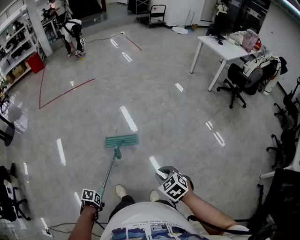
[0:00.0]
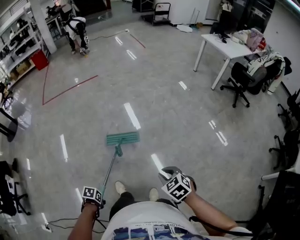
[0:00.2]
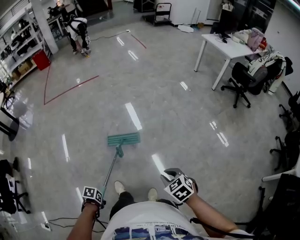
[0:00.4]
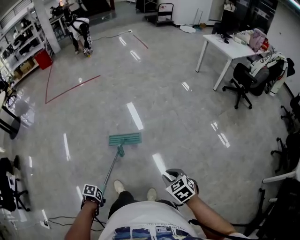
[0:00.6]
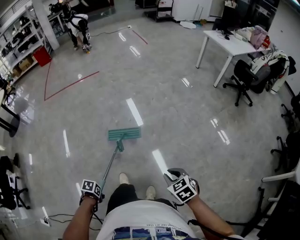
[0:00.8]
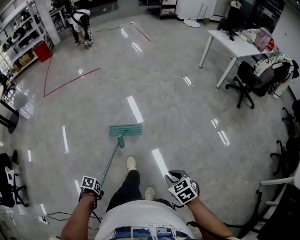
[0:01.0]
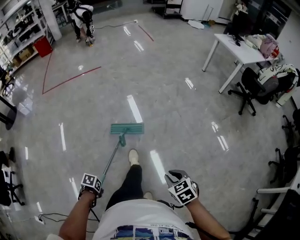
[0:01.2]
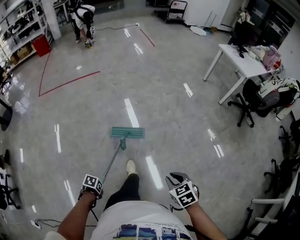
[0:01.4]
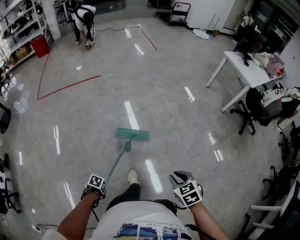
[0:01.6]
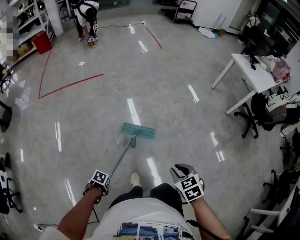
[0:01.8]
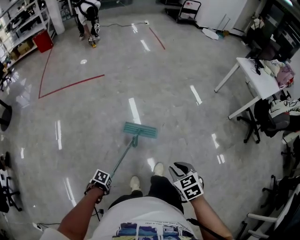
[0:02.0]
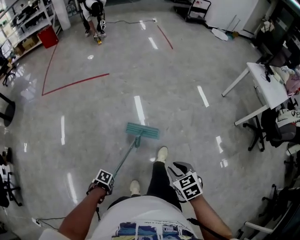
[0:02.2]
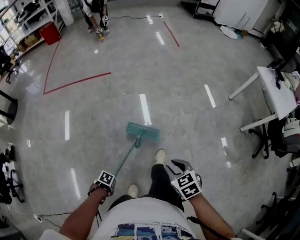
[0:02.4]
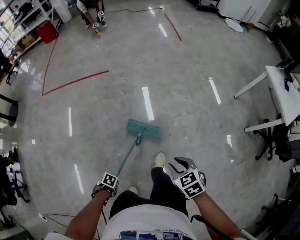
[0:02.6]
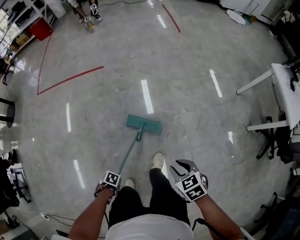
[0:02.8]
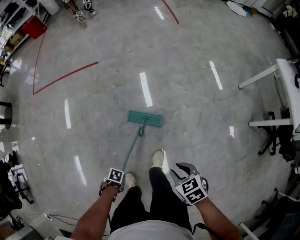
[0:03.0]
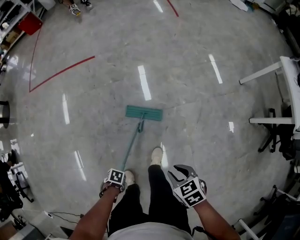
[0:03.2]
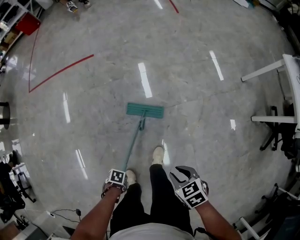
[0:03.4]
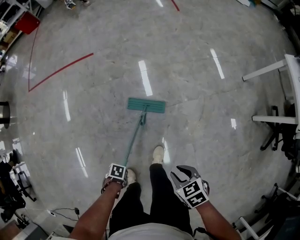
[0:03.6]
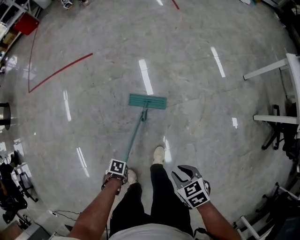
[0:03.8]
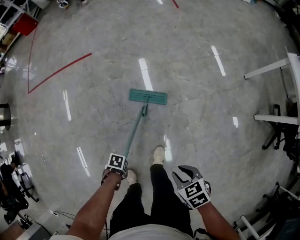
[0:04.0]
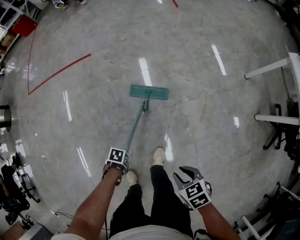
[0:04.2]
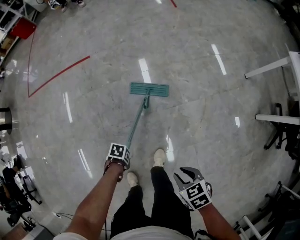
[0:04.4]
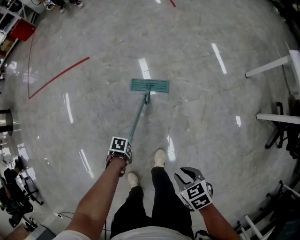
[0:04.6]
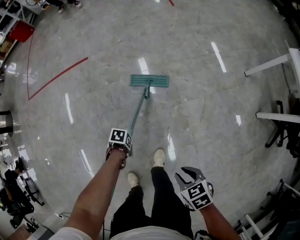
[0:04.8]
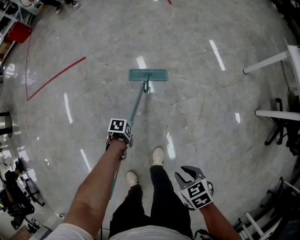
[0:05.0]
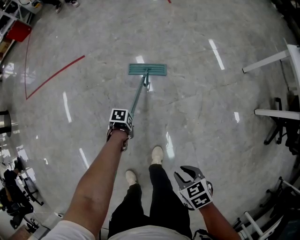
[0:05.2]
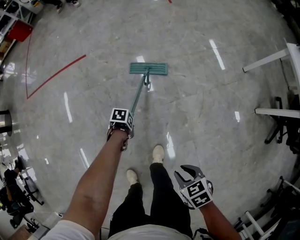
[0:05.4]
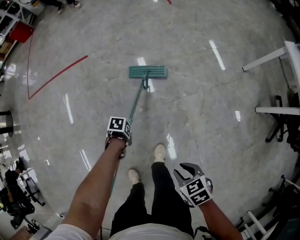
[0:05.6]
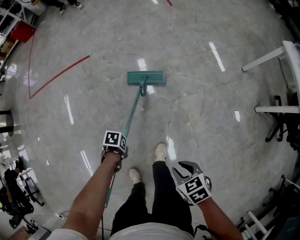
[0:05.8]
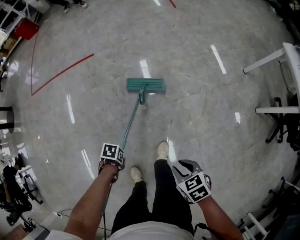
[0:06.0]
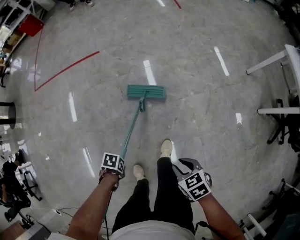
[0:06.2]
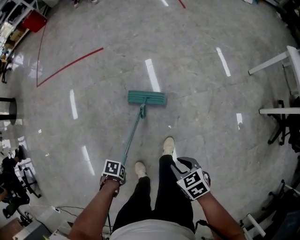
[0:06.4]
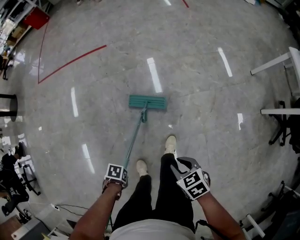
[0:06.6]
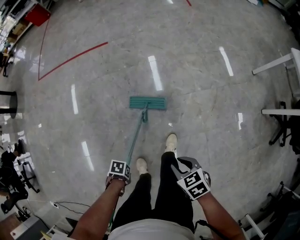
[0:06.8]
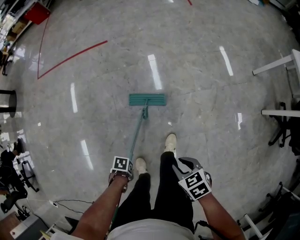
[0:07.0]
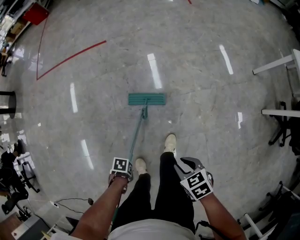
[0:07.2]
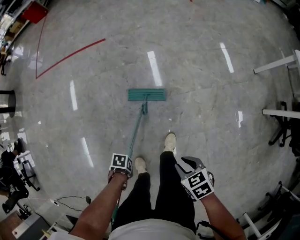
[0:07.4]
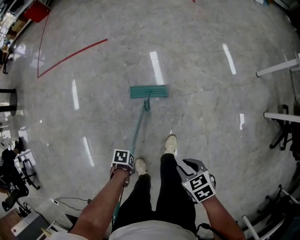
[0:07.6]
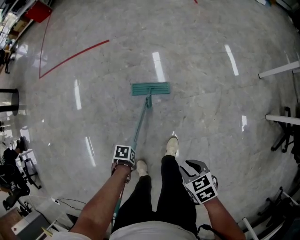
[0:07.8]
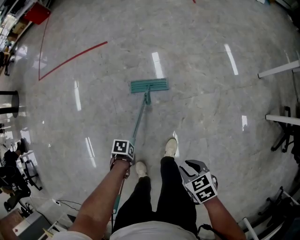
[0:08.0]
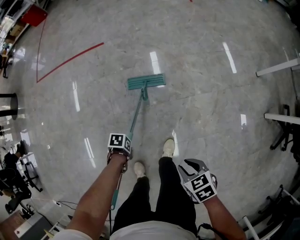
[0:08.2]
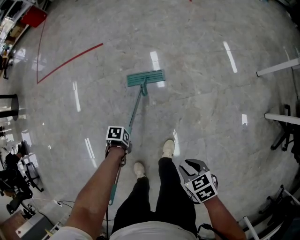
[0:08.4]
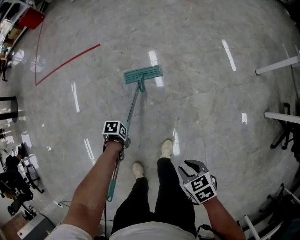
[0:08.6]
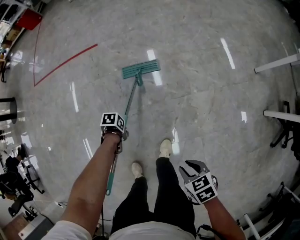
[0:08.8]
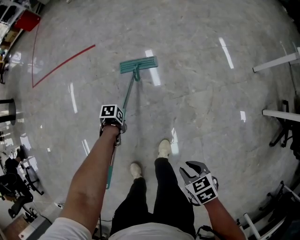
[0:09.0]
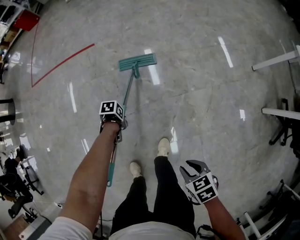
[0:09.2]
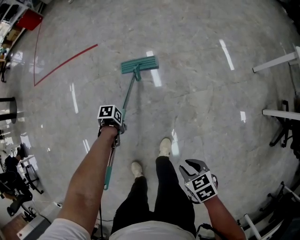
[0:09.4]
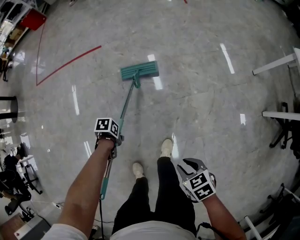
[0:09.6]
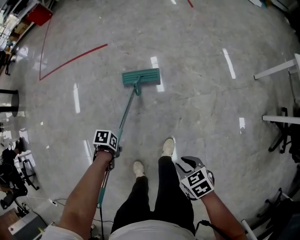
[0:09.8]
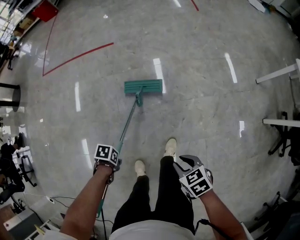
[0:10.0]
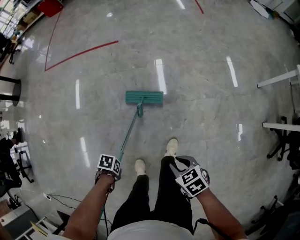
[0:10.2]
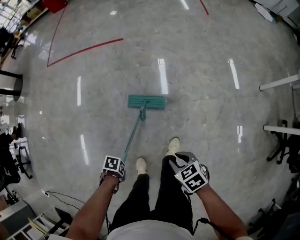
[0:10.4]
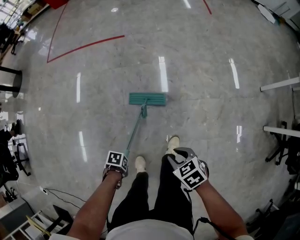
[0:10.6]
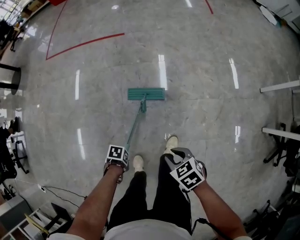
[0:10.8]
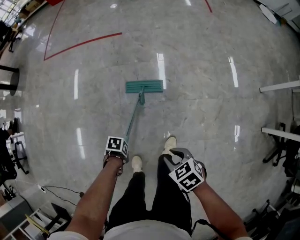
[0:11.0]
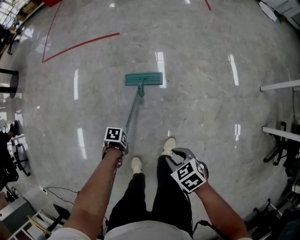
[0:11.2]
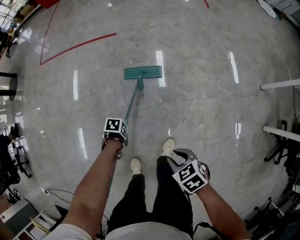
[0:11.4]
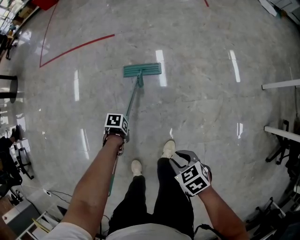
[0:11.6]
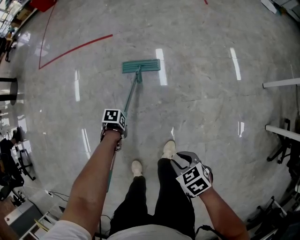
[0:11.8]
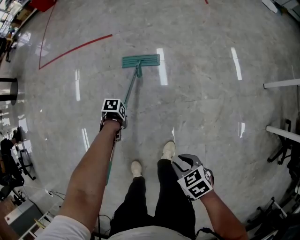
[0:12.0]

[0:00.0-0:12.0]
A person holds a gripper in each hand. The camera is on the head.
0.0 to 1.6 s: The right gripper moves some 25 cm.
1.6 to 3.0 s: The right gripper changes place by some 40 cm.
7.6 to 9.0 s: The right gripper moves approximately 5 cm.
9.0 to 10.4 s: The right gripper moves about 15 cm.
10.4 to 12.0 s: The right gripper moves some 10 cm.

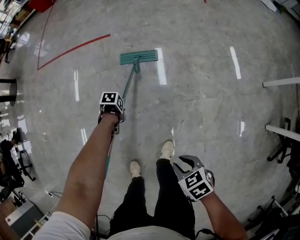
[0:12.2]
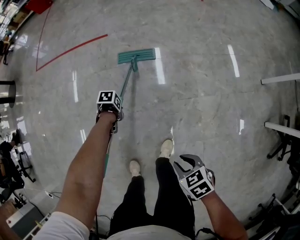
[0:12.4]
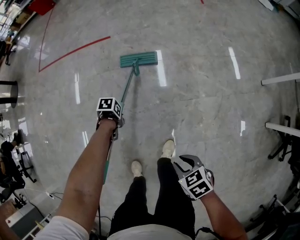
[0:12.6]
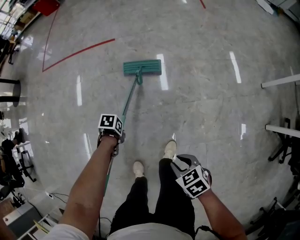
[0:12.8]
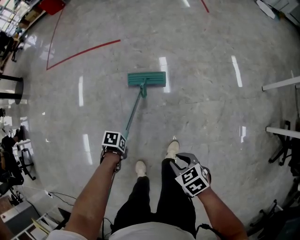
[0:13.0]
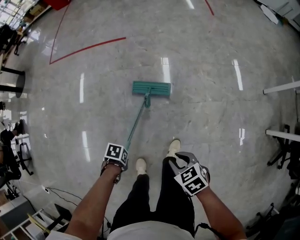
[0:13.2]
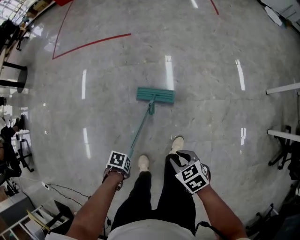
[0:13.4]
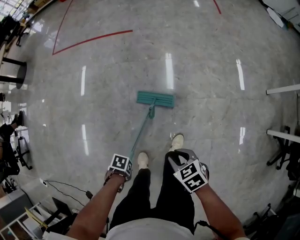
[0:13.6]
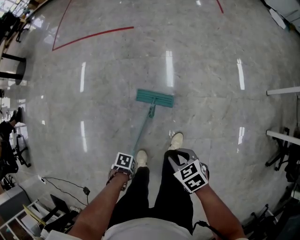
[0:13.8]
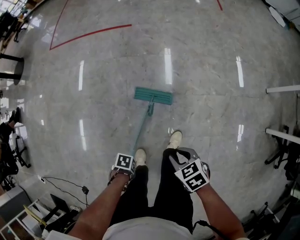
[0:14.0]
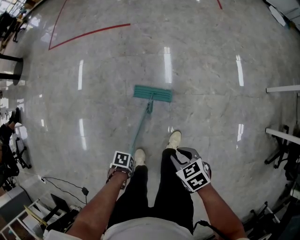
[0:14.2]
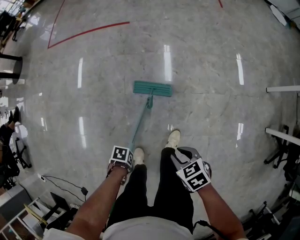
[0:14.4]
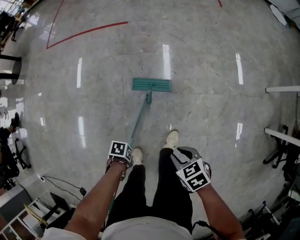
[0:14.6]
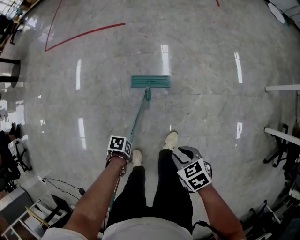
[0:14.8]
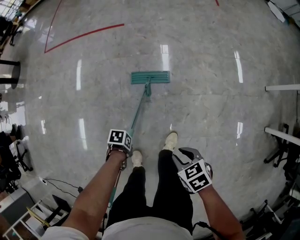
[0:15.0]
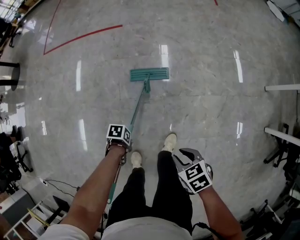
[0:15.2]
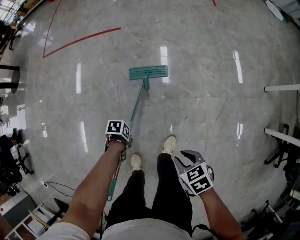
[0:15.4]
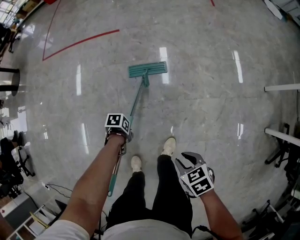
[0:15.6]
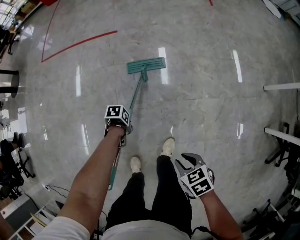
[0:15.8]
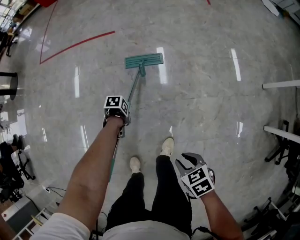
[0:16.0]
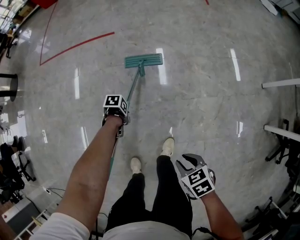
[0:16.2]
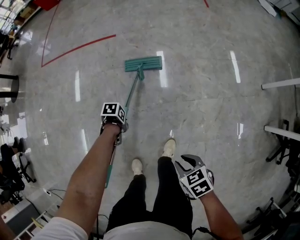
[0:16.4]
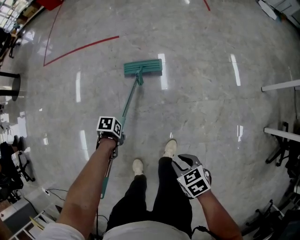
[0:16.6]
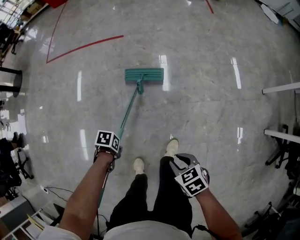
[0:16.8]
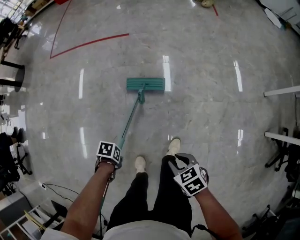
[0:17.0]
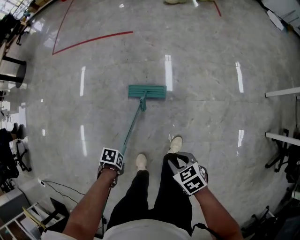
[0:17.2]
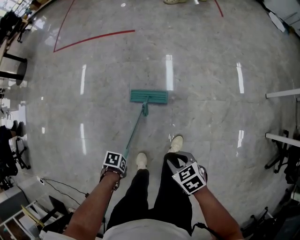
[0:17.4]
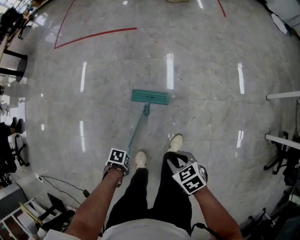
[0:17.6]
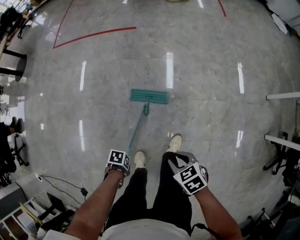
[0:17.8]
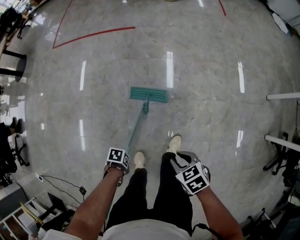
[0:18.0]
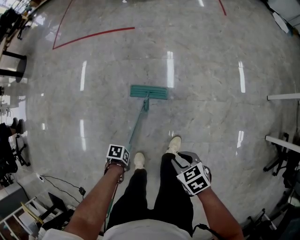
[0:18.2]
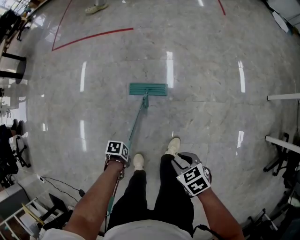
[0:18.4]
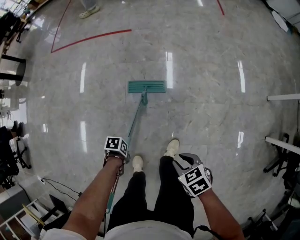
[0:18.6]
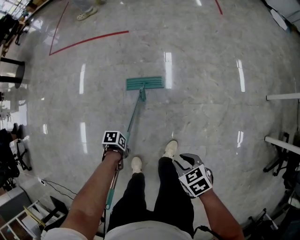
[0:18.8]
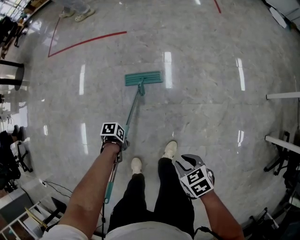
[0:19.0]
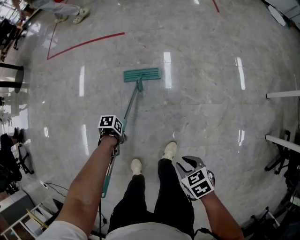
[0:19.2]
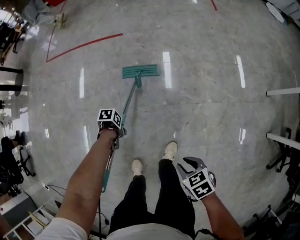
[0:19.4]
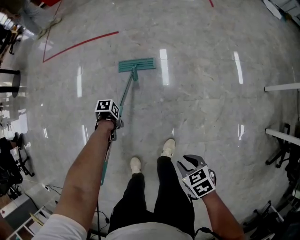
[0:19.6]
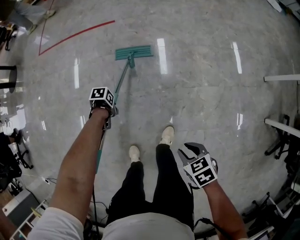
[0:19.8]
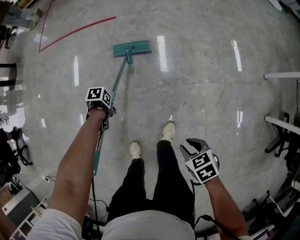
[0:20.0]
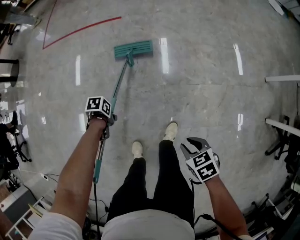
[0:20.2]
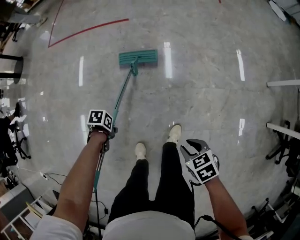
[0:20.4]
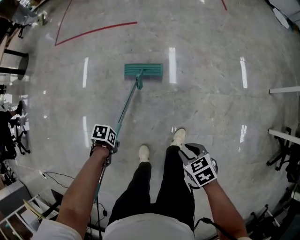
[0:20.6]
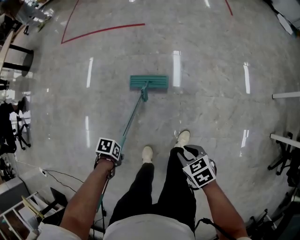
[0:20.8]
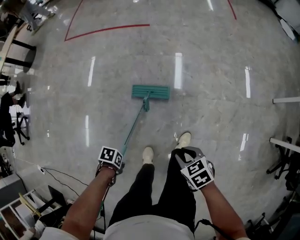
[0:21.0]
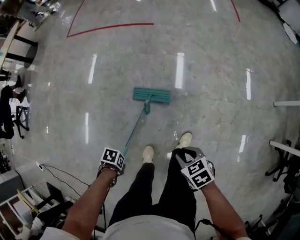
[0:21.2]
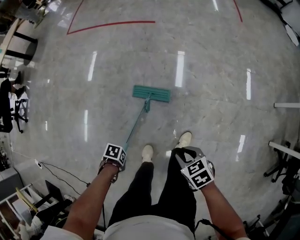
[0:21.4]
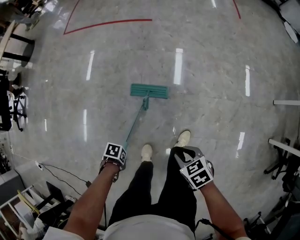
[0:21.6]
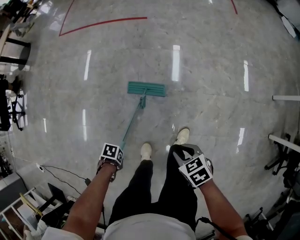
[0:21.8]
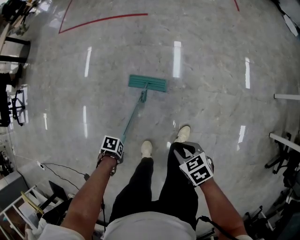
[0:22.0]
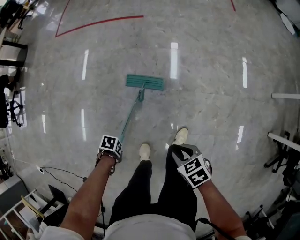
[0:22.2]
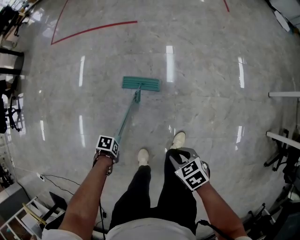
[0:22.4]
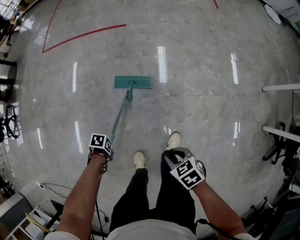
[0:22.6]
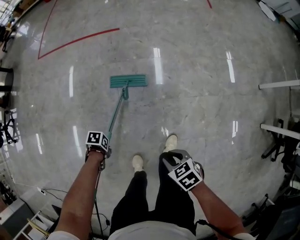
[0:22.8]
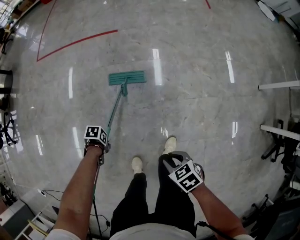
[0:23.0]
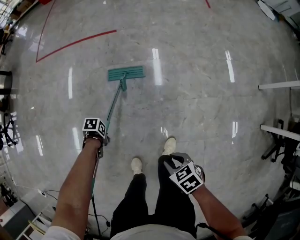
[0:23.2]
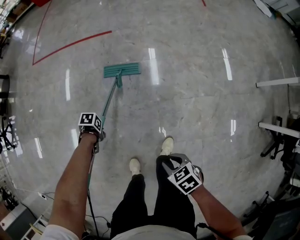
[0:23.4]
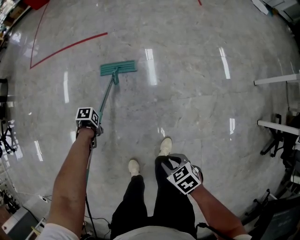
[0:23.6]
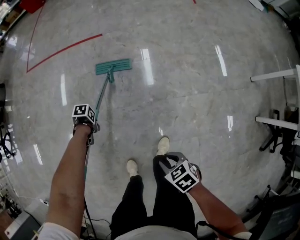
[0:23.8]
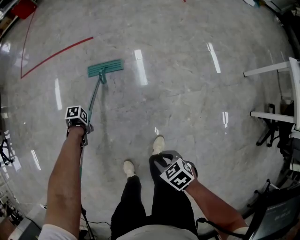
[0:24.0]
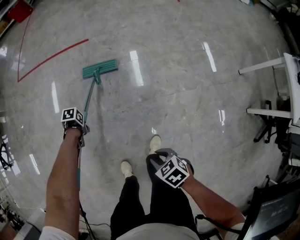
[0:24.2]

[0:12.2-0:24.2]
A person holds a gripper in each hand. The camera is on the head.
12.2 to 13.8 s: The right gripper shifts by about 10 cm.
13.8 to 15.2 s: The right gripper changes place by about 5 cm.
18.2 to 19.8 s: The right gripper moves approximately 10 cm.
19.8 to 21.2 s: The right gripper shifts by some 15 cm.

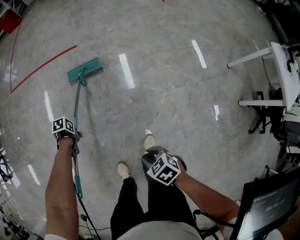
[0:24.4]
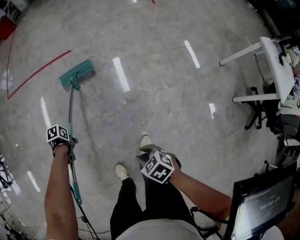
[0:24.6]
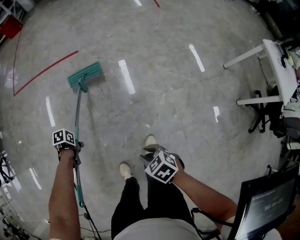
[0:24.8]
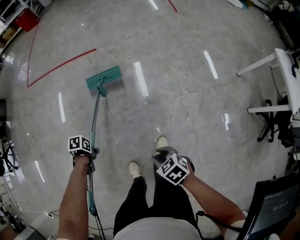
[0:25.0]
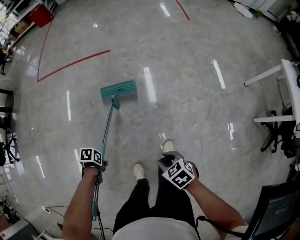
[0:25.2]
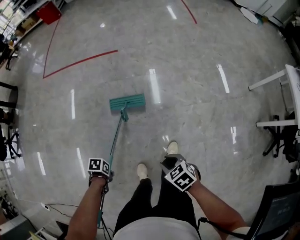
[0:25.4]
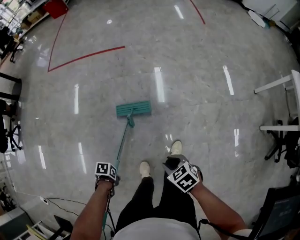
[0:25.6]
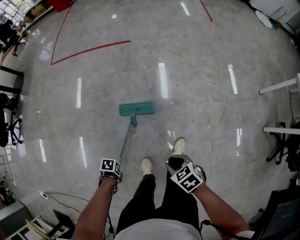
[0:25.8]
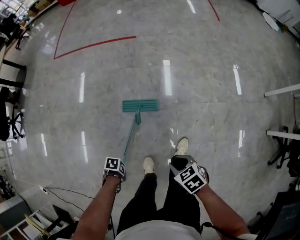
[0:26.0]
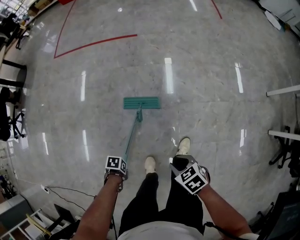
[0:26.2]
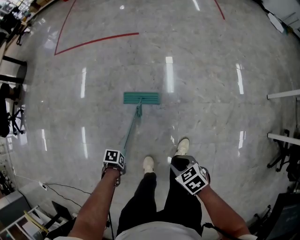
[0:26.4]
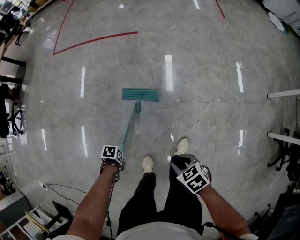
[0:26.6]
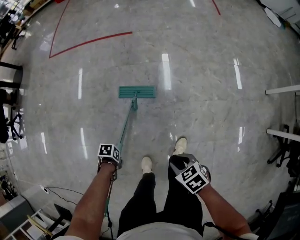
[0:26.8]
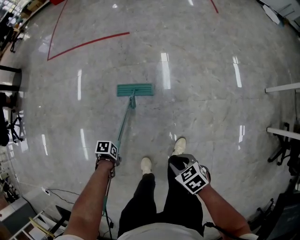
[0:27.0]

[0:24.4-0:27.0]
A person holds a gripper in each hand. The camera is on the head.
24.4 to 25.6 s: The right gripper ends up about 10 cm from where it was.
